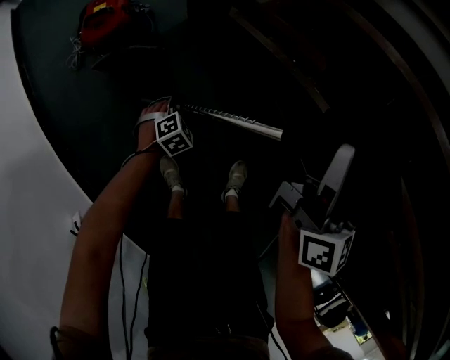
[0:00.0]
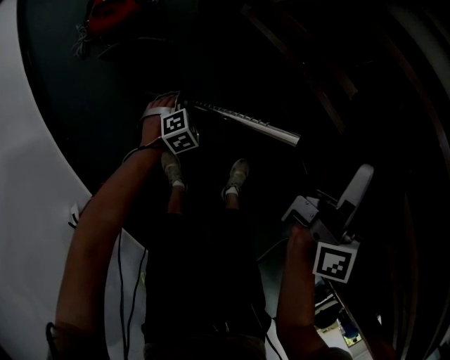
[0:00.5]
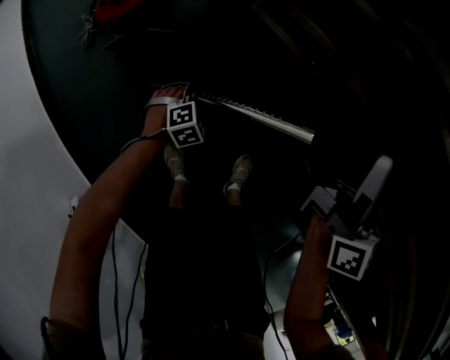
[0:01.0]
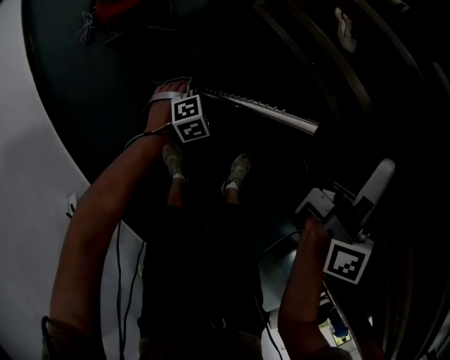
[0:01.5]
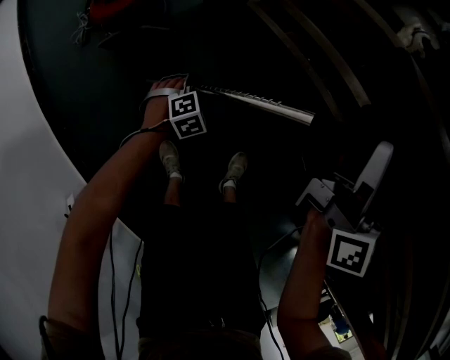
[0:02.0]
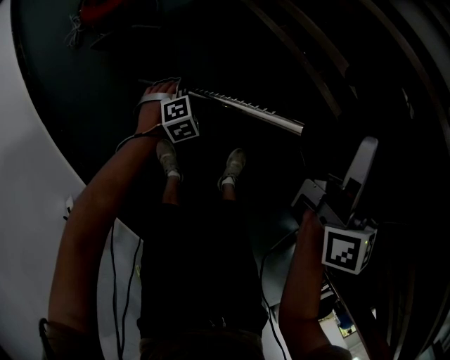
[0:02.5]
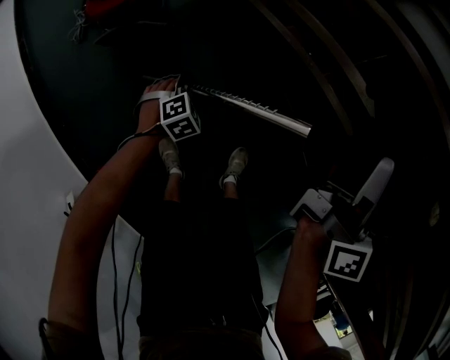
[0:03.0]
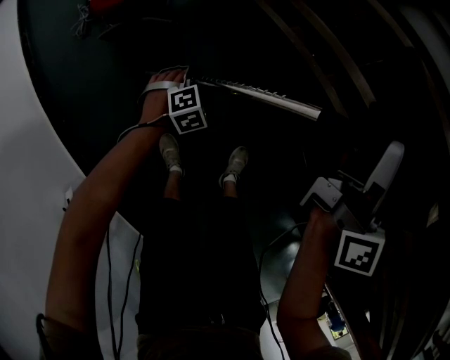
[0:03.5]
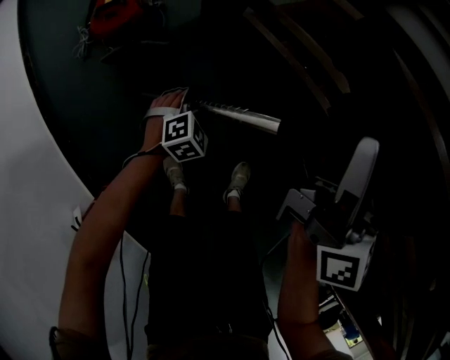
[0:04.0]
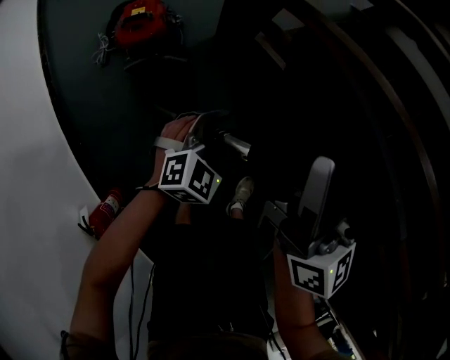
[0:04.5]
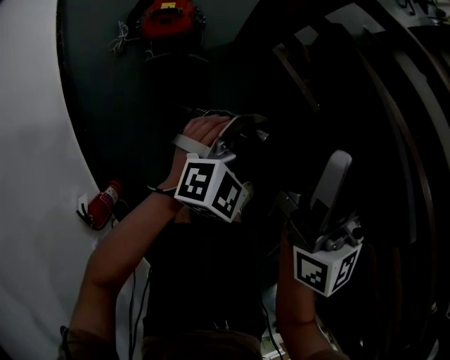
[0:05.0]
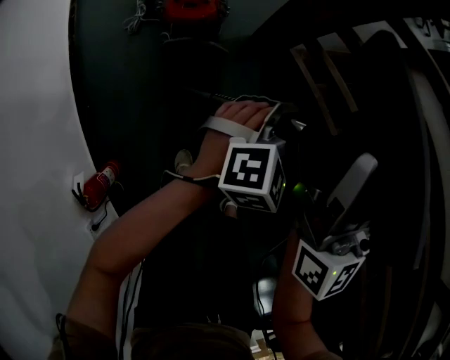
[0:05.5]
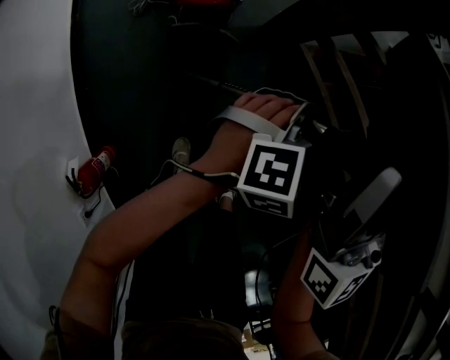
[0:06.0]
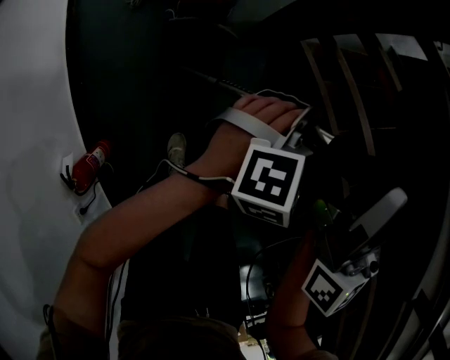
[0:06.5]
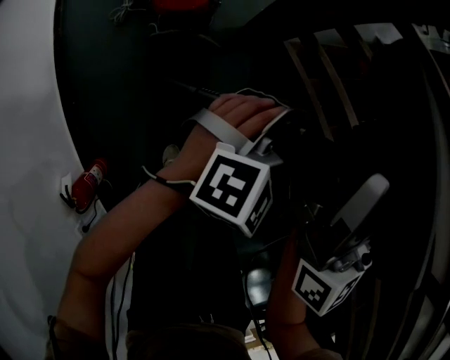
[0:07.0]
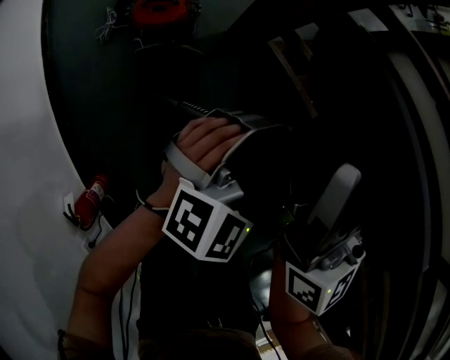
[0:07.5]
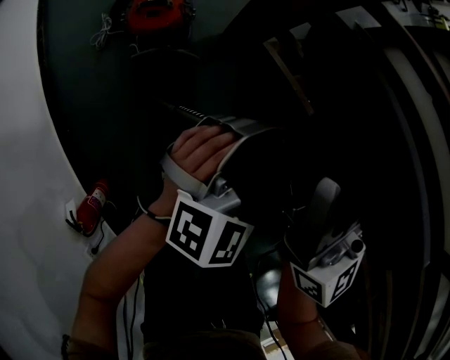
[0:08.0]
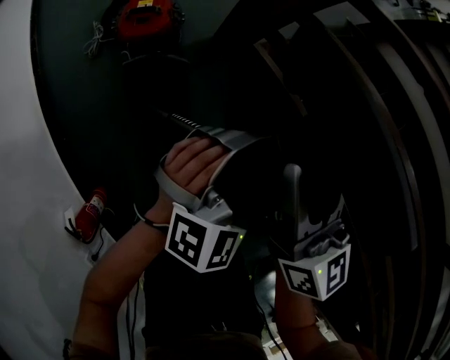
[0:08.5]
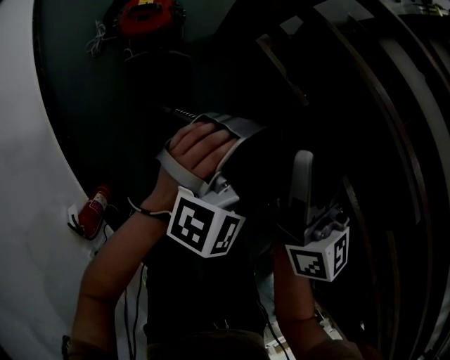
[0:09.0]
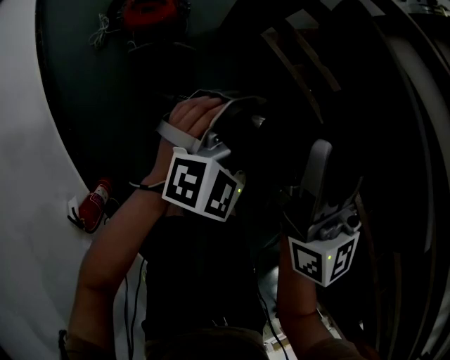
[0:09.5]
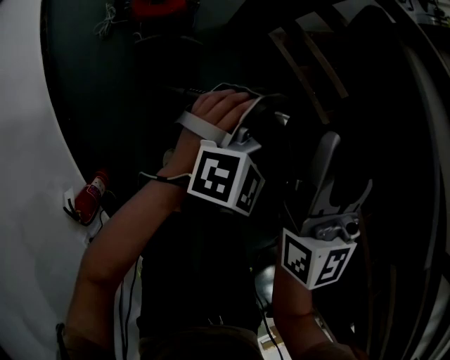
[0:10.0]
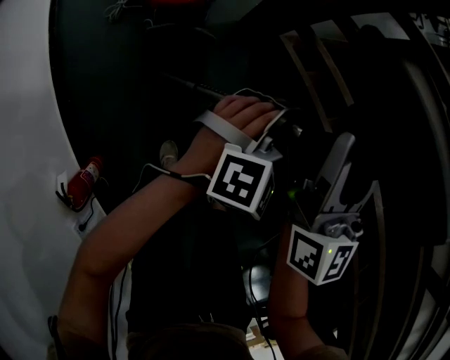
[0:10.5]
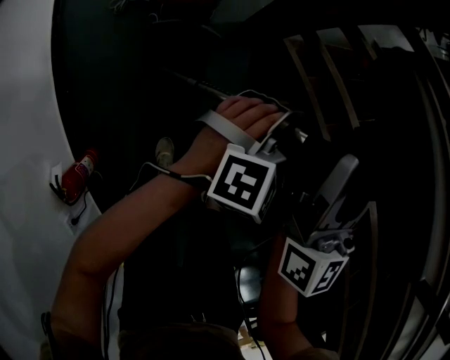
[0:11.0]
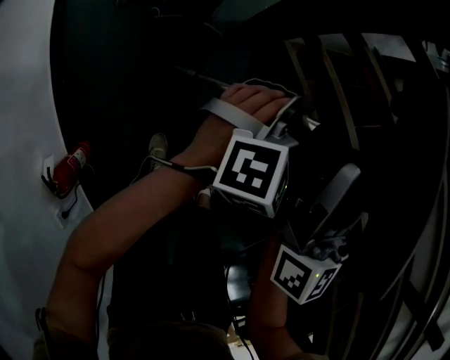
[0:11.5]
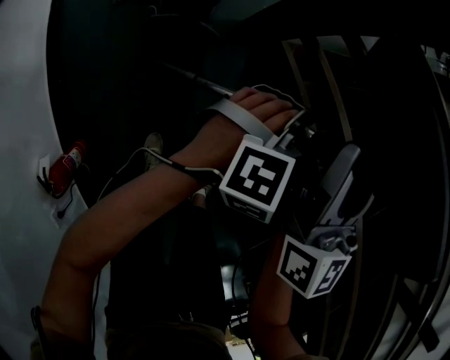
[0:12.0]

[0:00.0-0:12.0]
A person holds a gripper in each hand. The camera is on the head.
0:00.0 to 0:02.0: The grippers make only small movements.
0:02.0 to 0:04.0: The left gripper shifts roughly 5 cm upward, while the right gripper is displaced to the left by approximately 5 cm.
0:04.0 to 0:06.0: The right gripper moves to the left and upward, roughly 20 cm, and turns by approximately 30 degrees. The left gripper travels upward by roughly 25 cm, and changes its angle by roughly 20 degrees.
0:06.0 to 0:08.0: The left gripper goes some 10 cm upward.
0:08.0 to 0:10.0: The left gripper goes some 5 cm downward; the right gripper ends up about 5 cm from where it was.
0:10.0 to 0:12.0: There are only small adjustments of the grippers.

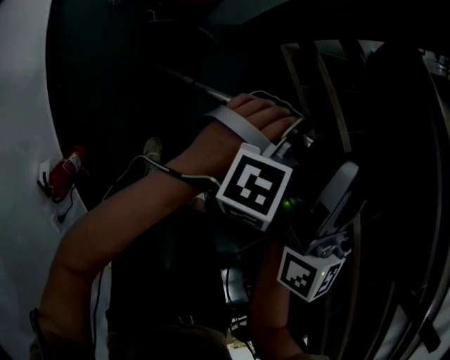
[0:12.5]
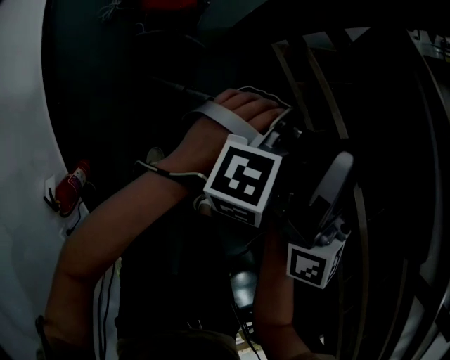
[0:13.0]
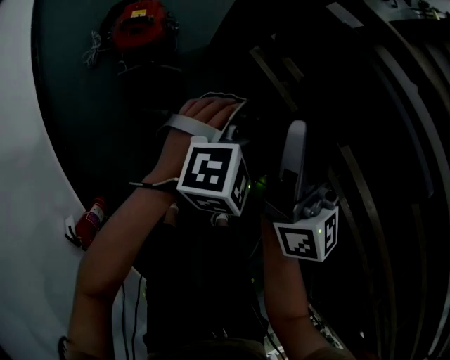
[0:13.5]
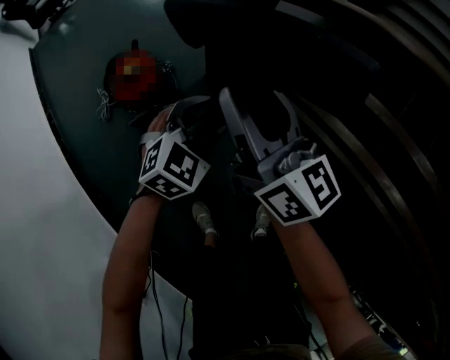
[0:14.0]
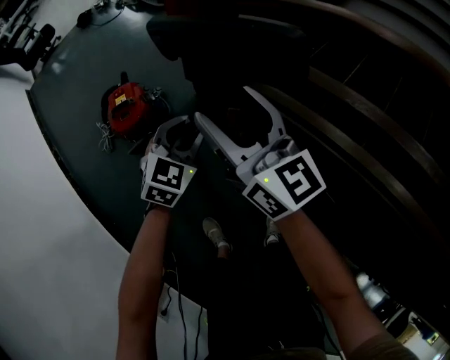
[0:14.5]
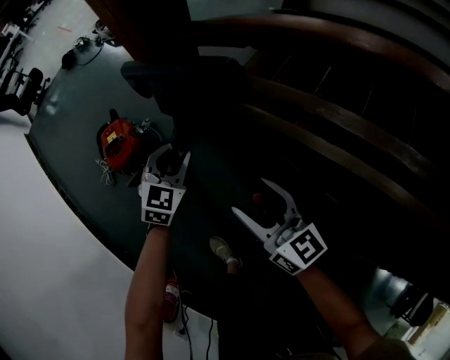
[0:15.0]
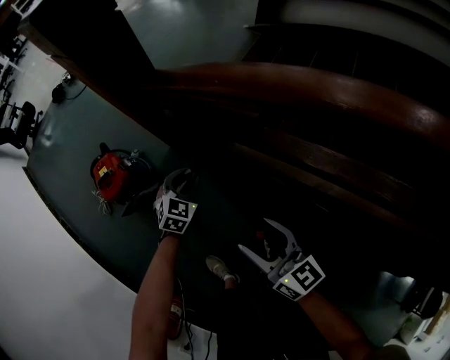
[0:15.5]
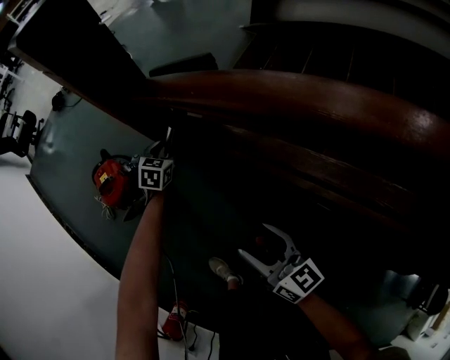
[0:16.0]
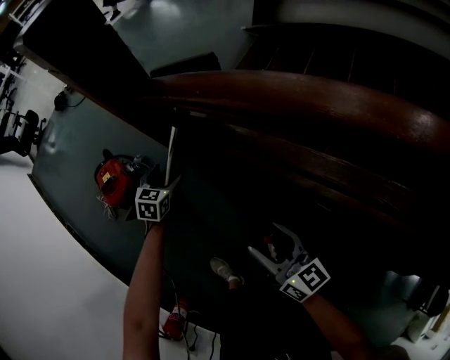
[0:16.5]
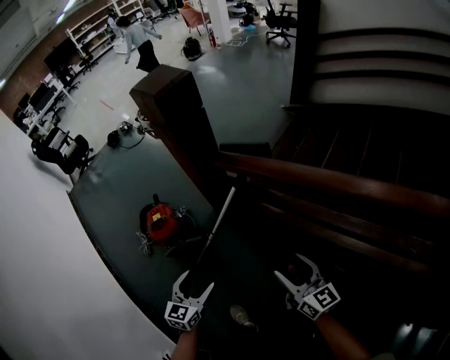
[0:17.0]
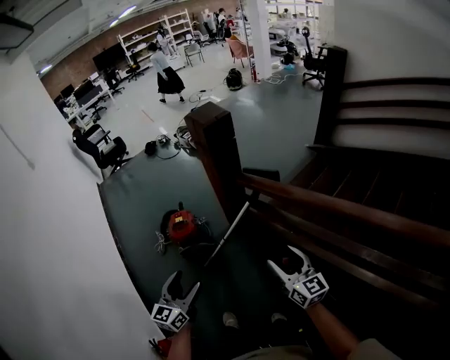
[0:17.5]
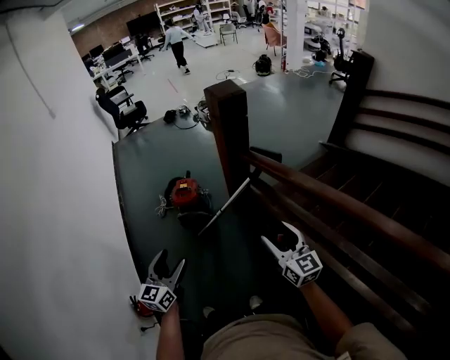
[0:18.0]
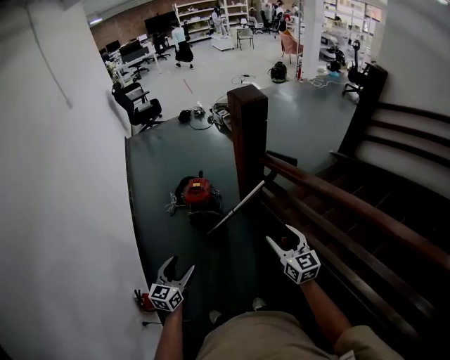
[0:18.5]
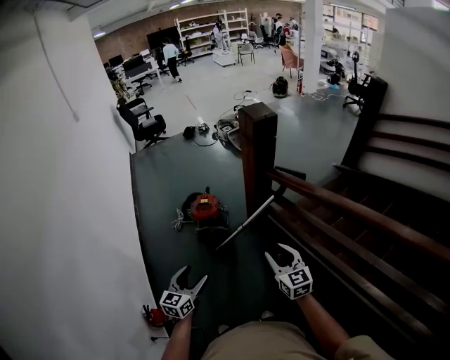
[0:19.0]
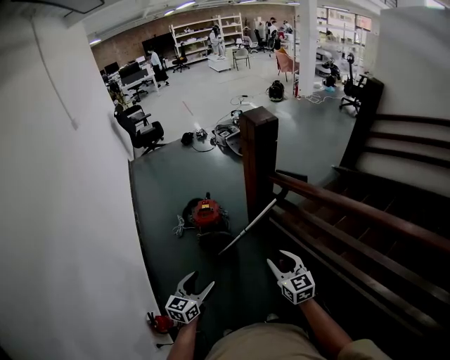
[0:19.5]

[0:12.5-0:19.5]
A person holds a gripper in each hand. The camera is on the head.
0:12.5 to 0:14.5: The grippers both shift forward by some 10 cm.
0:14.5 to 0:16.0: The right gripper shifts roughly 30 cm to the right and backward, while the left gripper heads forward, to the right and downward, covering about 20 cm.
0:16.0 to 0:17.5: The left gripper goes approximately 60 cm backward and upward, and tips its fingers upward by about 40 degrees. The right gripper shifts roughly 25 cm upward.
0:17.5 to 0:19.5: The left gripper goes approximately 15 cm backward and to the left; the right gripper is displaced to the left and backward by approximately 15 cm, changes its angle by some 20 degrees, and closes up.

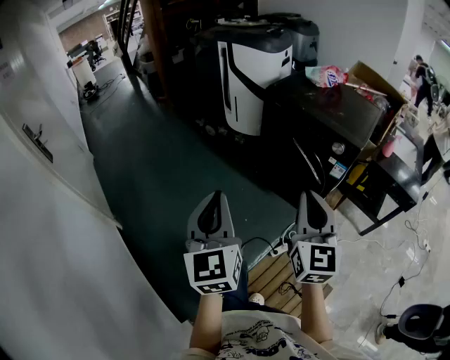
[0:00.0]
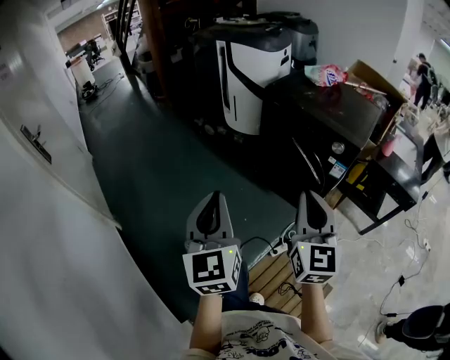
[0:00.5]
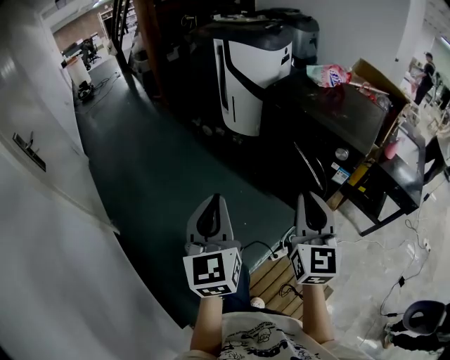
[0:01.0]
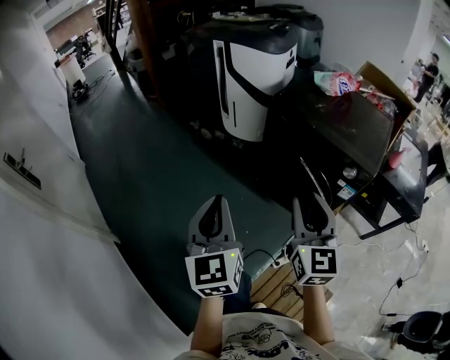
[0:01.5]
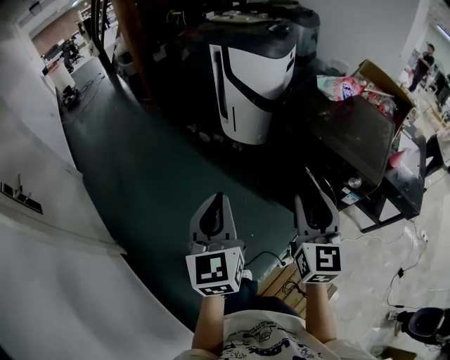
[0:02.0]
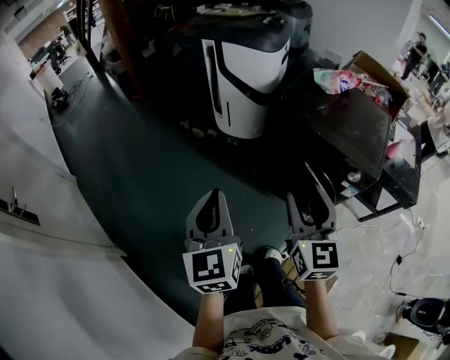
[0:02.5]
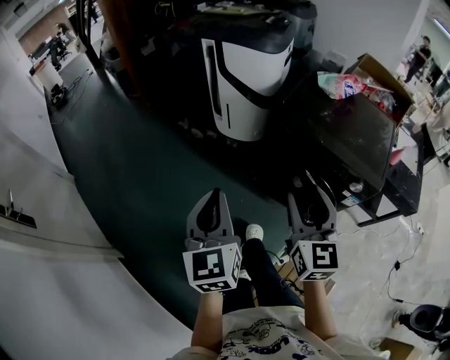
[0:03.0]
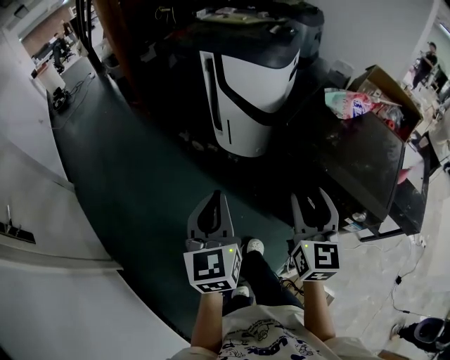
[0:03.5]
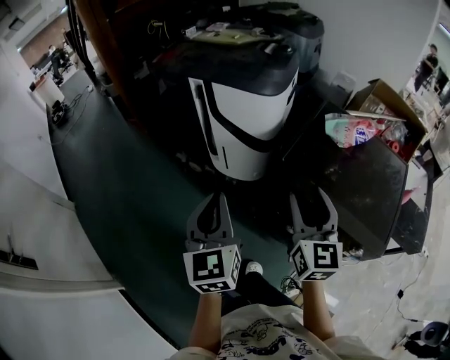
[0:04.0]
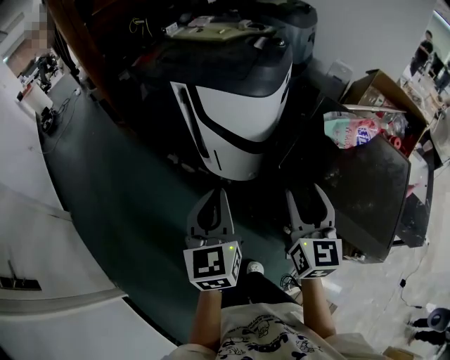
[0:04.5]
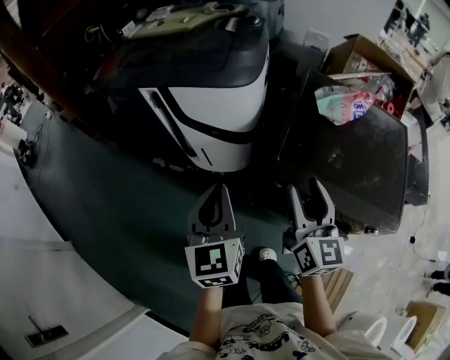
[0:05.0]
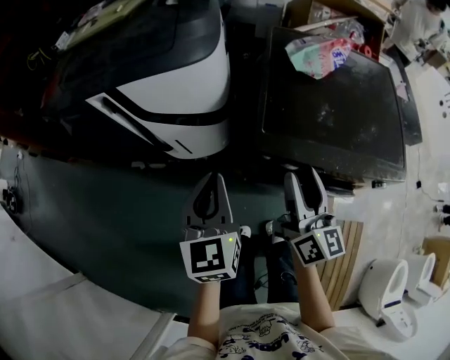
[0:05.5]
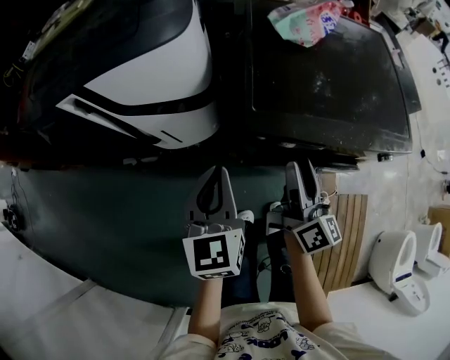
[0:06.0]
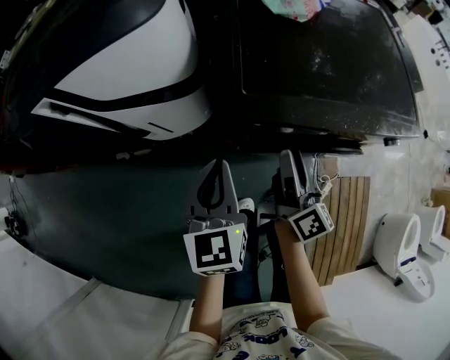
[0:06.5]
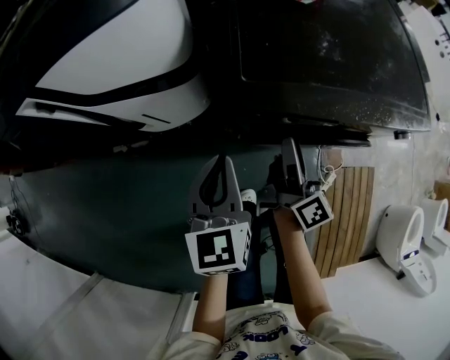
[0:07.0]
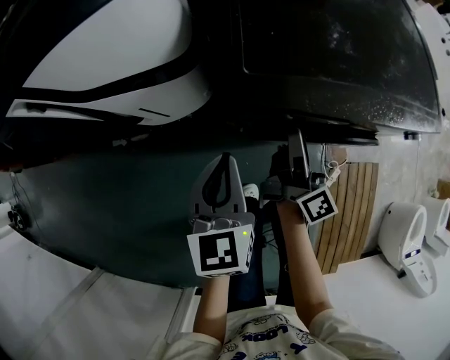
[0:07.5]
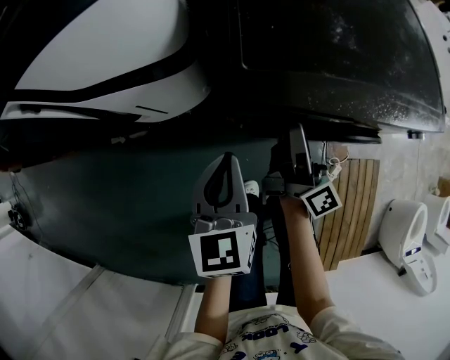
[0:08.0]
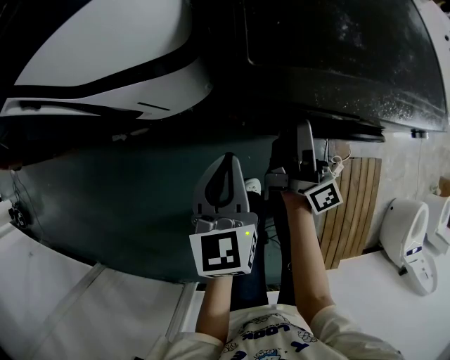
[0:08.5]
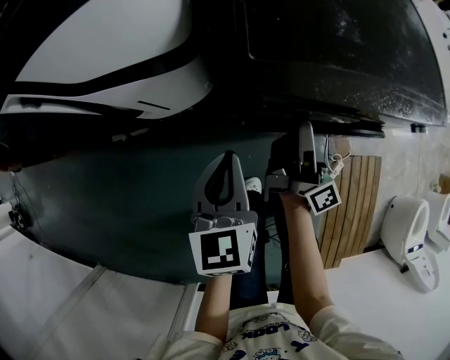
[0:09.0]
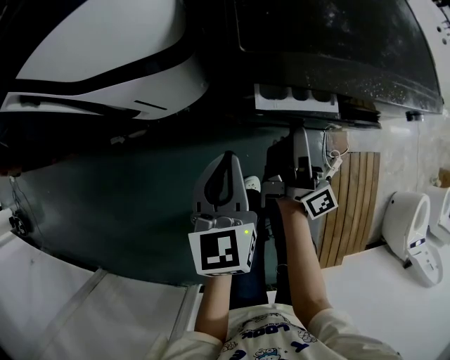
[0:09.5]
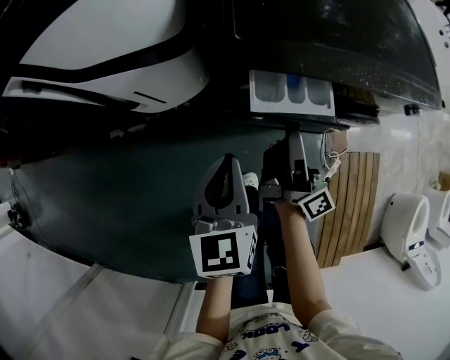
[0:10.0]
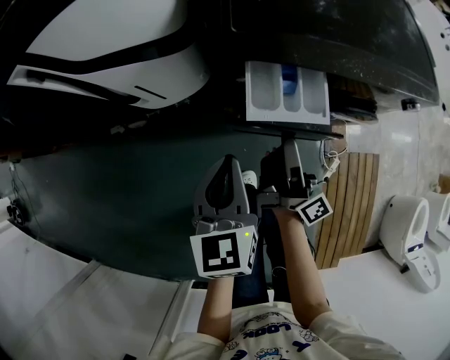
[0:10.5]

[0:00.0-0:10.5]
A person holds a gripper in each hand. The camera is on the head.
0:00.0 to 0:02.0: The two grippers go roughly 30 cm forward. The right gripper opens.
0:02.0 to 0:04.0: Both grippers move forward, roughly 40 cm.
0:04.0 to 0:06.5: Both grippers move downward, roughly 25 cm. The right gripper turns by some 70 degrees; the left gripper turns by some 40 degrees.
0:06.5 to 0:08.5: Both grippers move downward, approximately 10 cm. The right gripper turns by roughly 20 degrees.
0:08.5 to 0:10.5: Both grippers move backward, approximately 10 cm.
